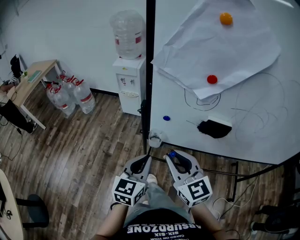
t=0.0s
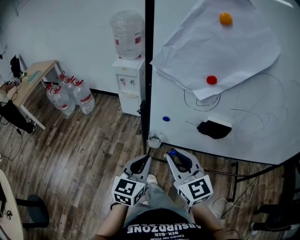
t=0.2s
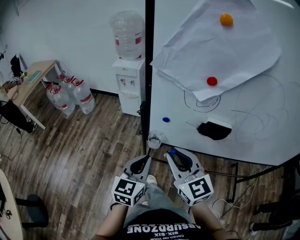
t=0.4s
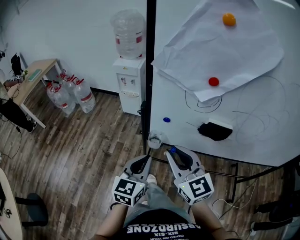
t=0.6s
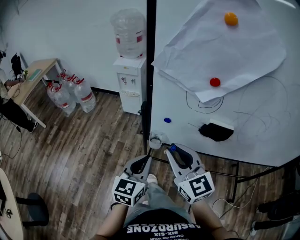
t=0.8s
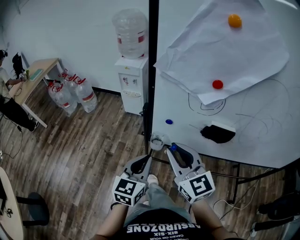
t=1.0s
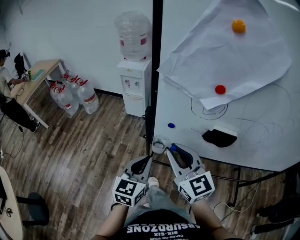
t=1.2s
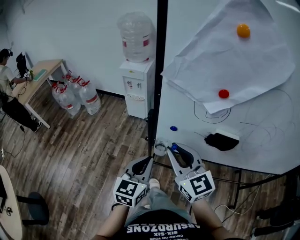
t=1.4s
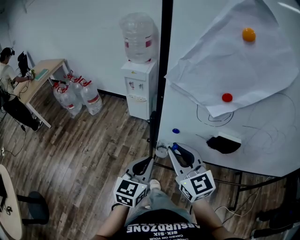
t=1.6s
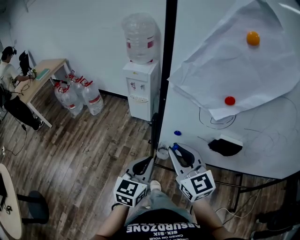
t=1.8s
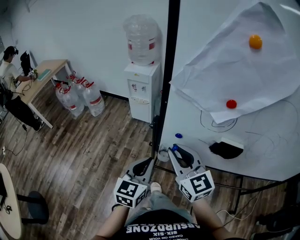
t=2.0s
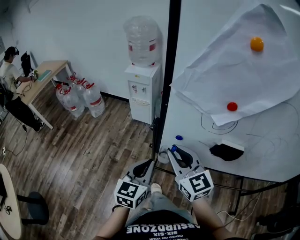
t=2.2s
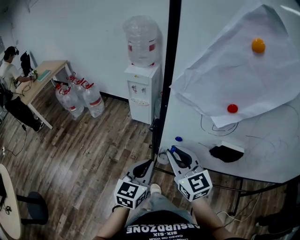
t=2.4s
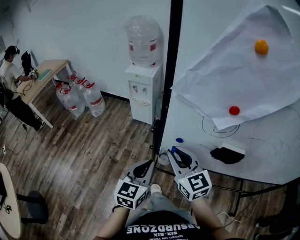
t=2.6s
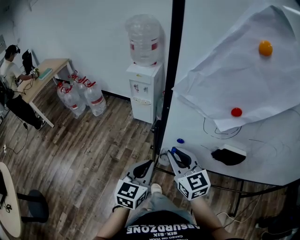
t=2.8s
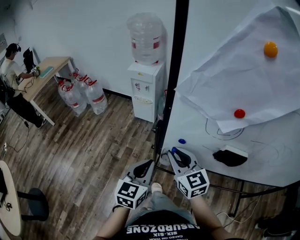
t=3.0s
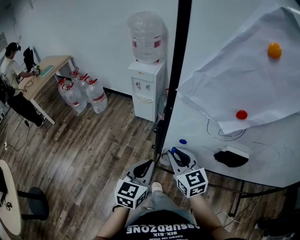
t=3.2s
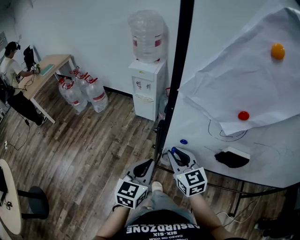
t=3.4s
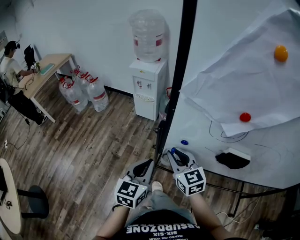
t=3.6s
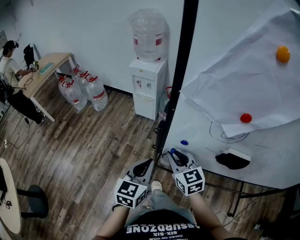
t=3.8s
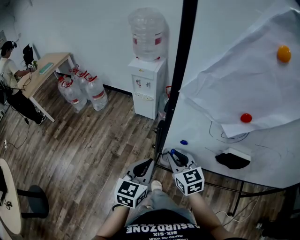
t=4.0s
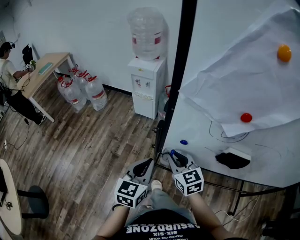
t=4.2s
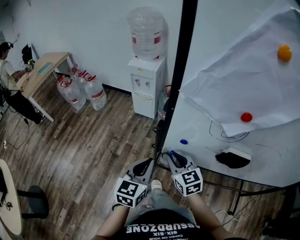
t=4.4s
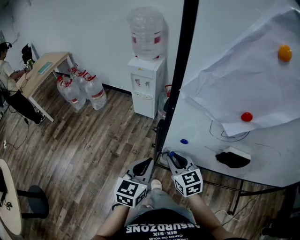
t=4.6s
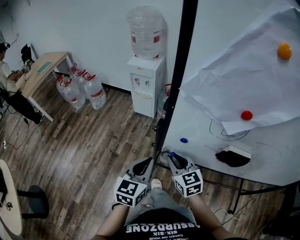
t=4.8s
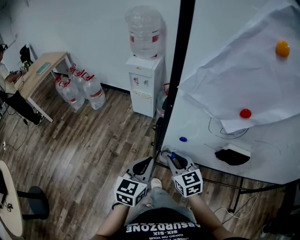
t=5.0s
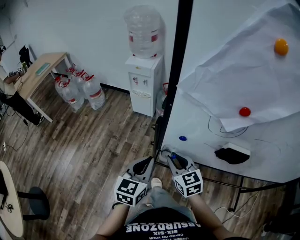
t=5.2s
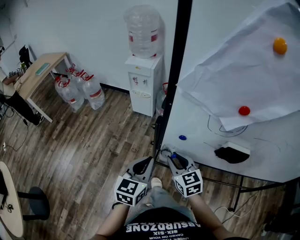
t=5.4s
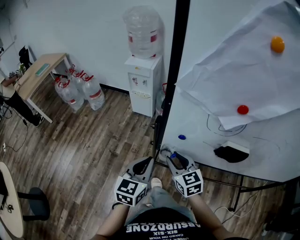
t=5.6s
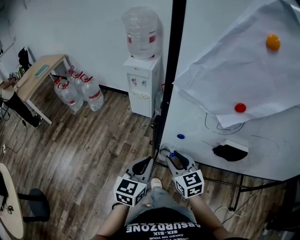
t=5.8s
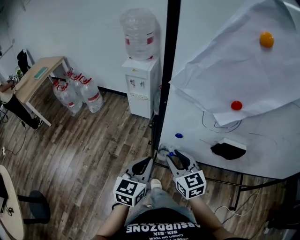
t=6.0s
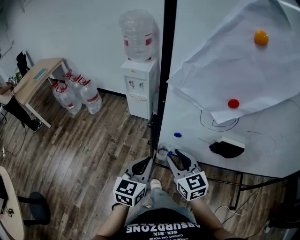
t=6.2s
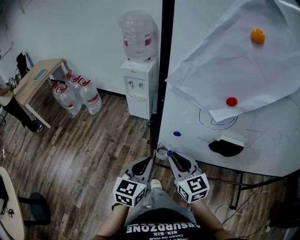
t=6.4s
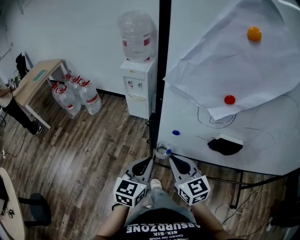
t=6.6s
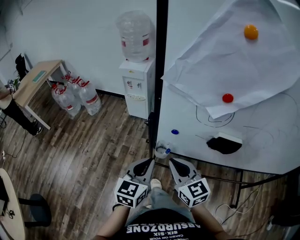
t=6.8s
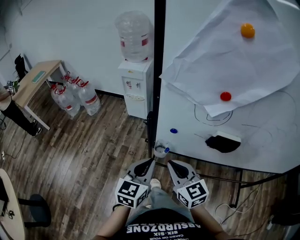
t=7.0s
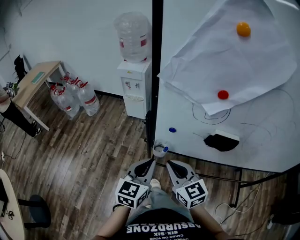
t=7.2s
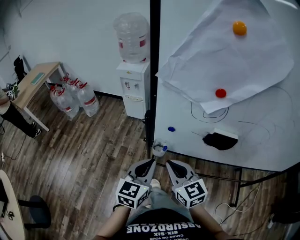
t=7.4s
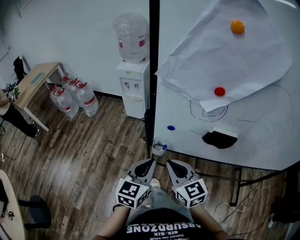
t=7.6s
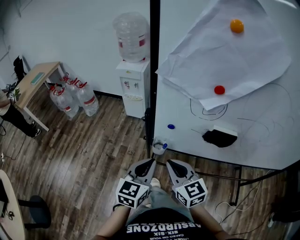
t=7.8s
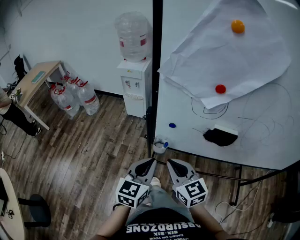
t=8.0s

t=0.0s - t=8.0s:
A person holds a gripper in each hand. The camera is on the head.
t=0.0s - t=1.6s: The right gripper travels forward by some 5 cm.
t=1.6s - t=3.2s: The right gripper goes some 10 cm downward and forward.
t=3.2s - t=4.8s: The right gripper heads downward, covering approximately 5 cm.
t=4.8s - t=6.4s: The right gripper is displaced upward by about 5 cm.
t=6.4s - t=8.0s: The left gripper shifts by approximately 5 cm; the right gripper shifts roughly 5 cm backward.

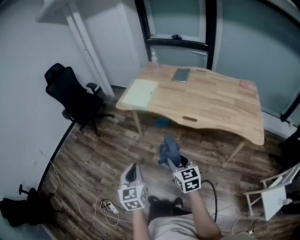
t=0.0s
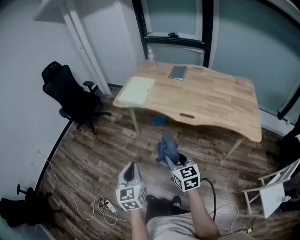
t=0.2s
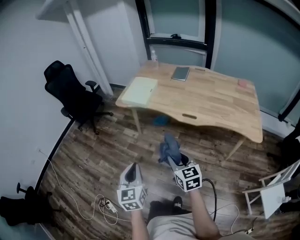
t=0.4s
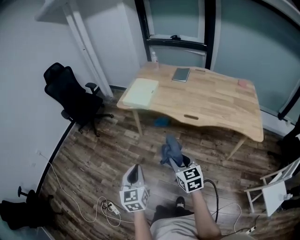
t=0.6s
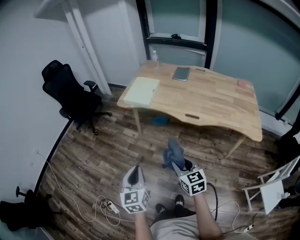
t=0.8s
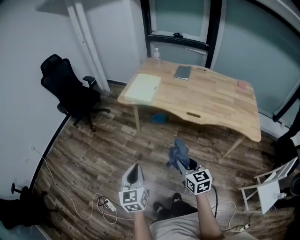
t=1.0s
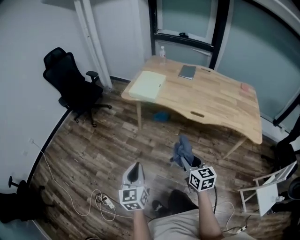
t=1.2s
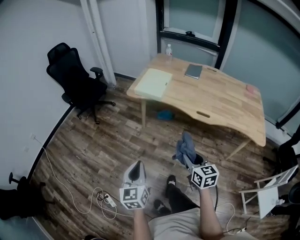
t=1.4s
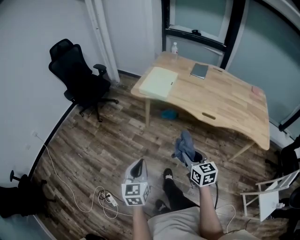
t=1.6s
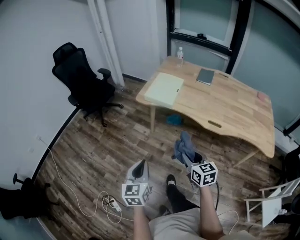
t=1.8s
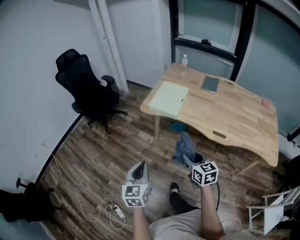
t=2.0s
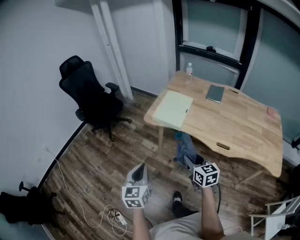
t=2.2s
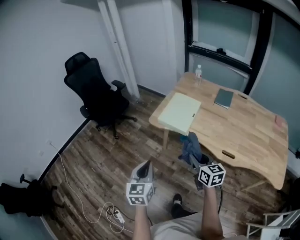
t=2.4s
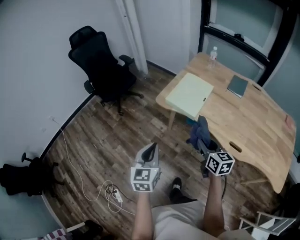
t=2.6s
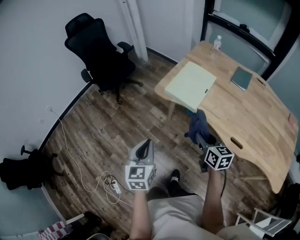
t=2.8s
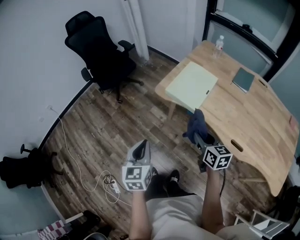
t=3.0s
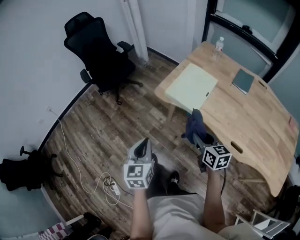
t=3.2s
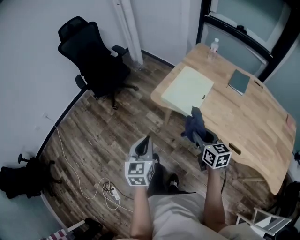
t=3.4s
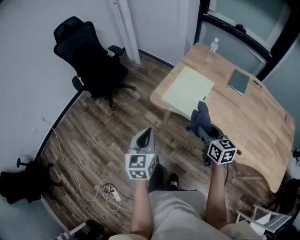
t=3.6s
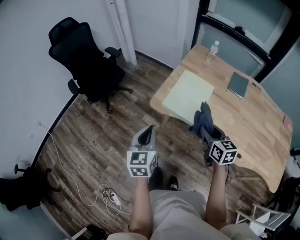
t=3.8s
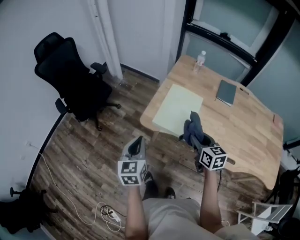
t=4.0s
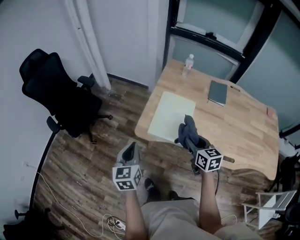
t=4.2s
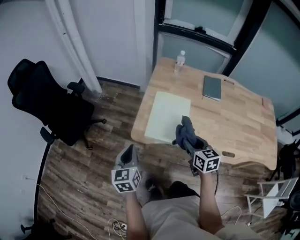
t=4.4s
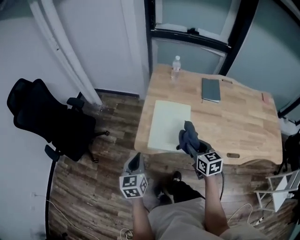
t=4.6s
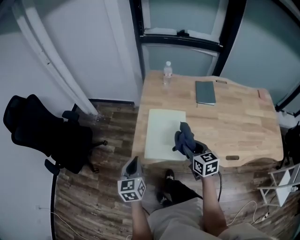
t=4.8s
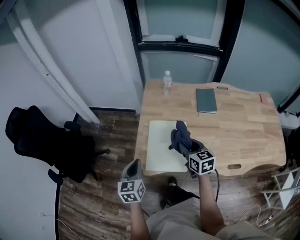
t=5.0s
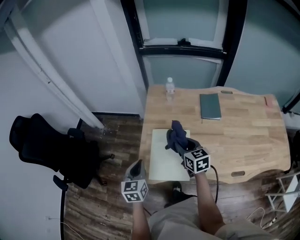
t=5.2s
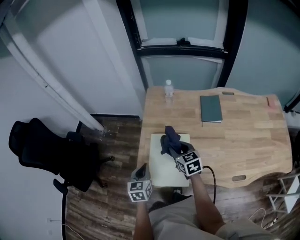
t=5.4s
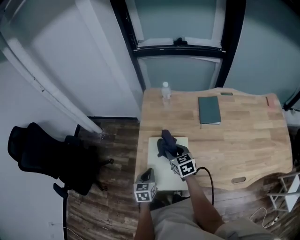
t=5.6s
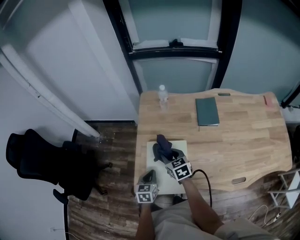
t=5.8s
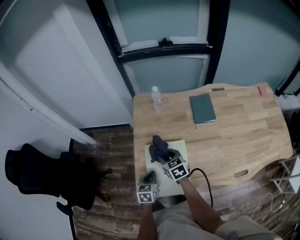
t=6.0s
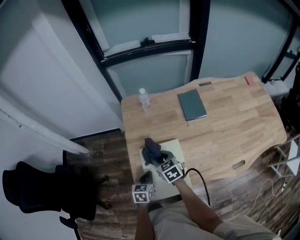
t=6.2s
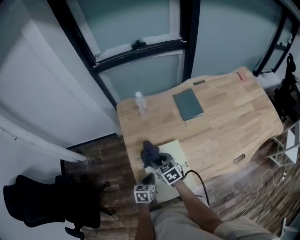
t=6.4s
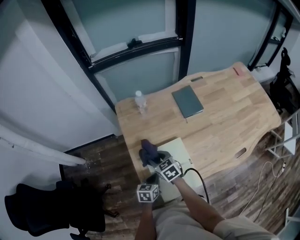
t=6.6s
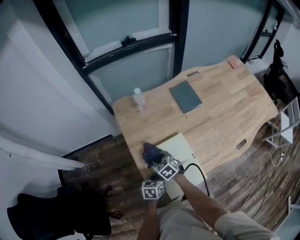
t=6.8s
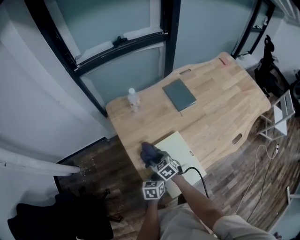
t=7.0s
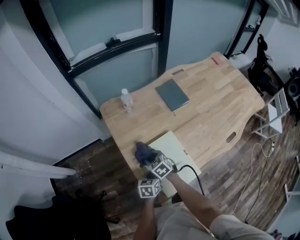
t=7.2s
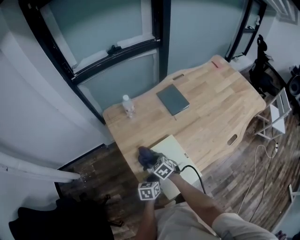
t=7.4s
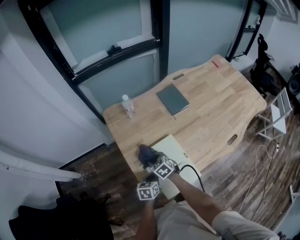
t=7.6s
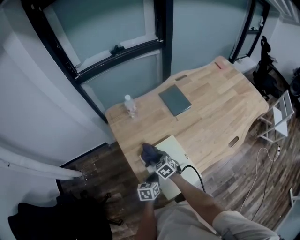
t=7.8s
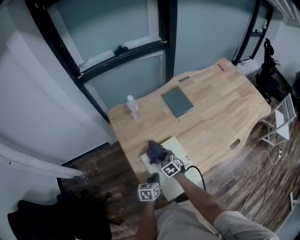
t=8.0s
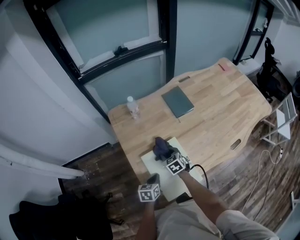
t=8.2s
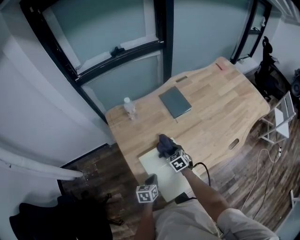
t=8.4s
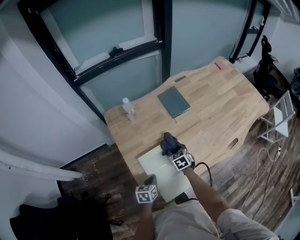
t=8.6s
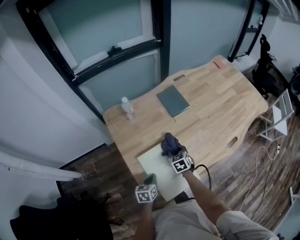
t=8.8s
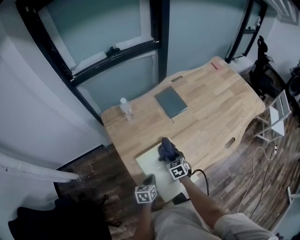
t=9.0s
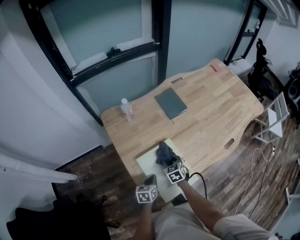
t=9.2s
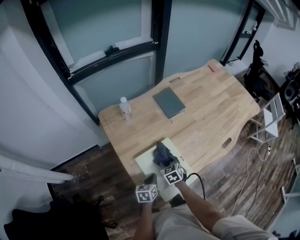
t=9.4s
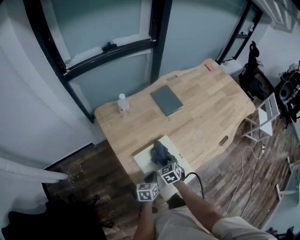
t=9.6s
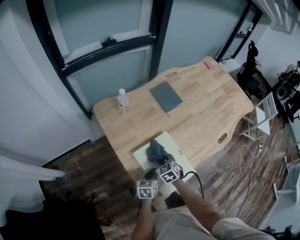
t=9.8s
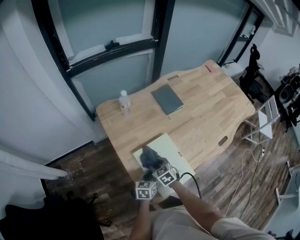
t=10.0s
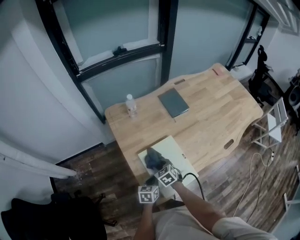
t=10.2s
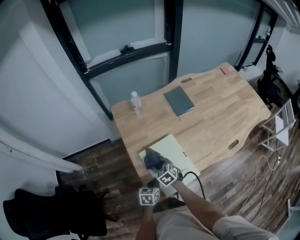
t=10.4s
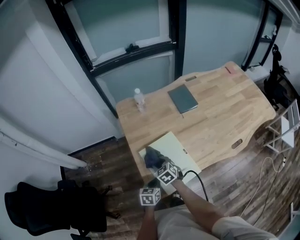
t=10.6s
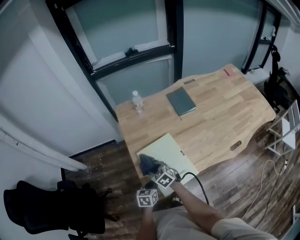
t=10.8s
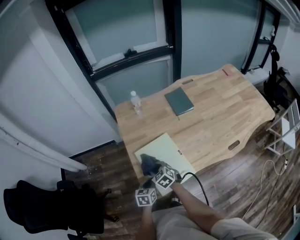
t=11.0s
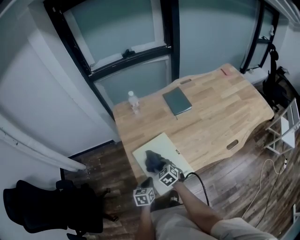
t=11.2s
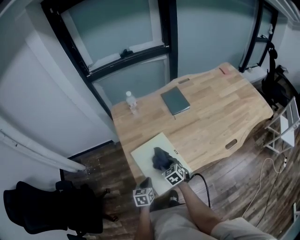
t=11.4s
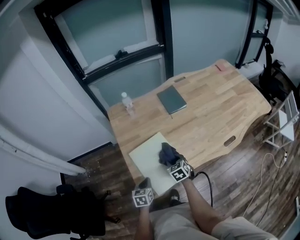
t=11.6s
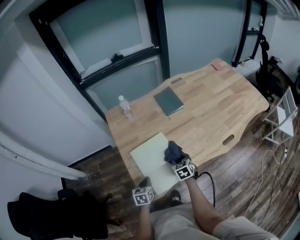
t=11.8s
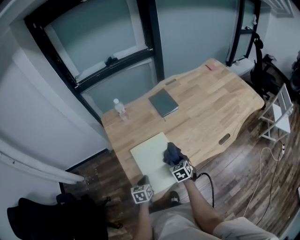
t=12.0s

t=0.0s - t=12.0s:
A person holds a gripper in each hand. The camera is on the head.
t=0.0s - t=1.6s: The grippers both shift to the left by some 10 cm.
t=1.6s - t=3.0s: Both grippers travel together forward, some 30 cm.
t=3.0s - t=4.4s: The right gripper heads forward, covering approximately 20 cm, and changes its angle by some 20 degrees. The left gripper moves forward, some 30 cm, and changes its angle by about 20 degrees.
t=4.4s - t=6.0s: The right gripper goes roughly 30 cm forward; the left gripper is displaced forward, downward and to the right by roughly 30 cm, and turns by some 30 degrees.
t=6.0s - t=7.6s: The left gripper changes its angle by about 30 degrees. The right gripper travels downward by roughly 10 cm.
t=7.6s - t=9.0s: The right gripper is displaced to the right by some 15 cm, and changes its angle by about 20 degrees.
t=9.0s - t=10.4s: The left gripper travels backward by roughly 5 cm, while the right gripper is displaced to the left and backward by roughly 15 cm, and turns by roughly 20 degrees.
t=10.4s - t=12.0s: The right gripper moves to the right, roughly 20 cm, and swivels some 20 degrees.

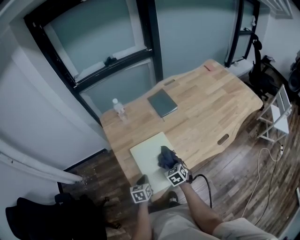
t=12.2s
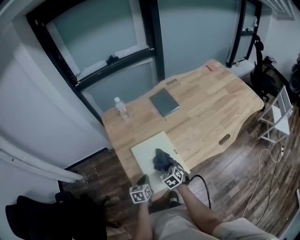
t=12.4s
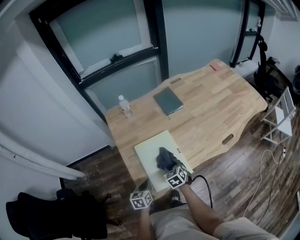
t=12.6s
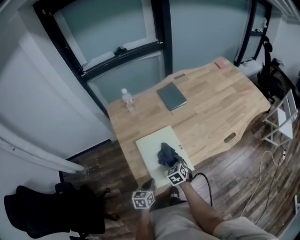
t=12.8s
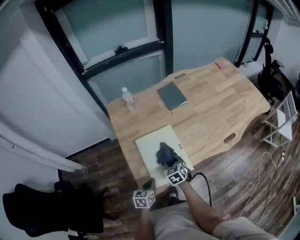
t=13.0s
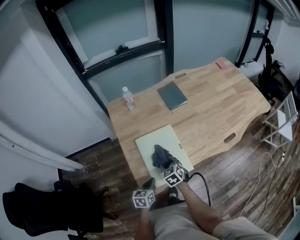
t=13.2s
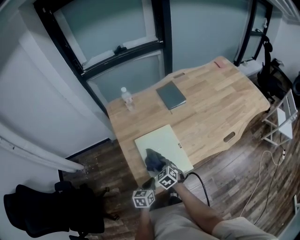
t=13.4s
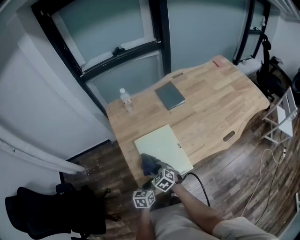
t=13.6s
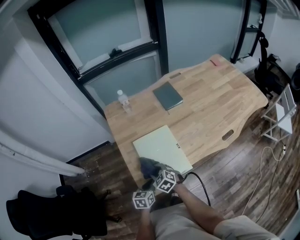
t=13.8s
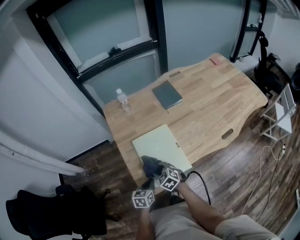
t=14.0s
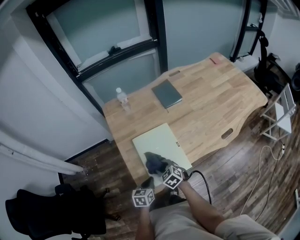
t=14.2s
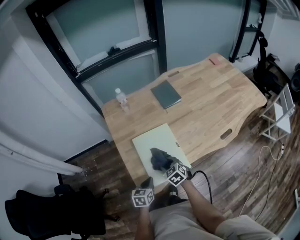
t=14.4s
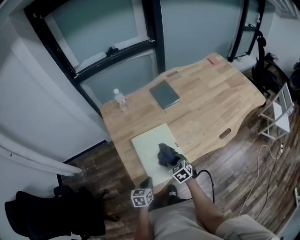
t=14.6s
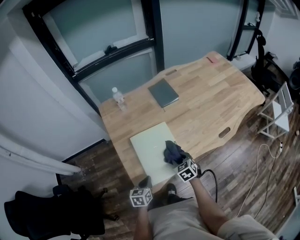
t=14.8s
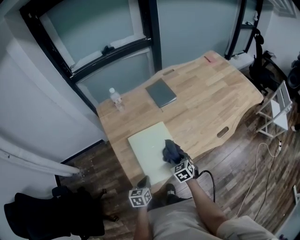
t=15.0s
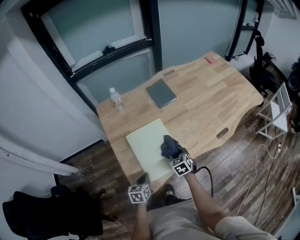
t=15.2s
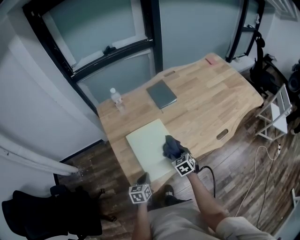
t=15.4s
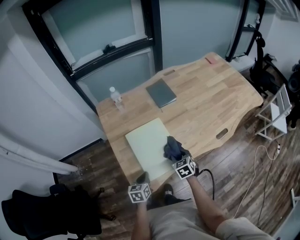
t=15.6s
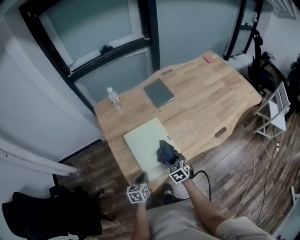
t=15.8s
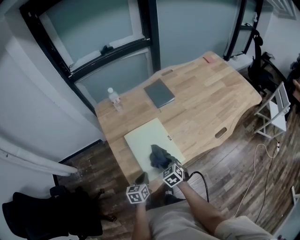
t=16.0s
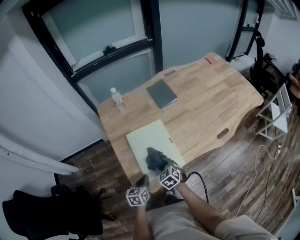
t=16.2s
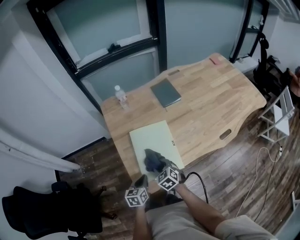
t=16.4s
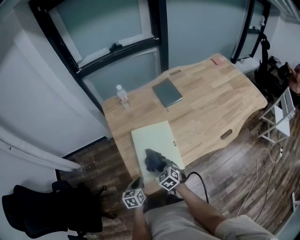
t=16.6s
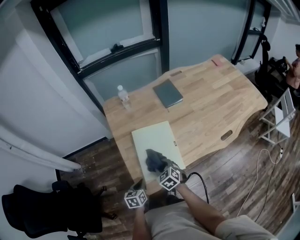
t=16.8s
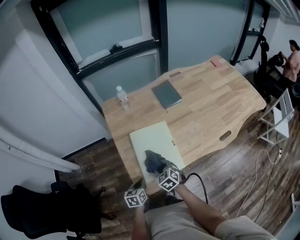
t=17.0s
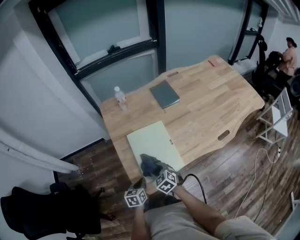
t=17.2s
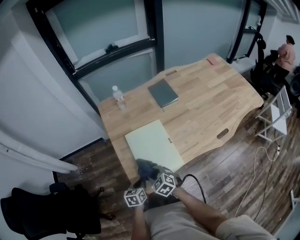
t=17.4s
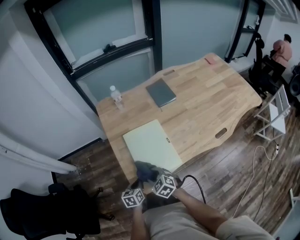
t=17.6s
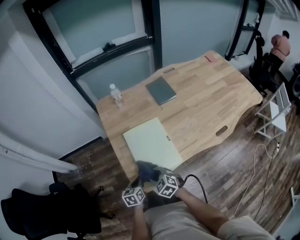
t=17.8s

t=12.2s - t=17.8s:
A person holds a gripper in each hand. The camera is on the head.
t=12.2s - t=13.6s: The left gripper goes some 5 cm backward. The right gripper shifts approximately 15 cm to the left, and changes its angle by about 20 degrees.
t=13.6s - t=15.0s: The right gripper heads to the right, covering about 20 cm, and swivels roughly 20 degrees.
t=15.0s - t=16.4s: The right gripper is displaced to the left by about 10 cm.
t=16.4s - t=17.8s: The right gripper moves backward, about 5 cm.
